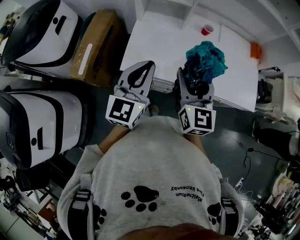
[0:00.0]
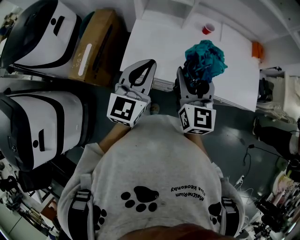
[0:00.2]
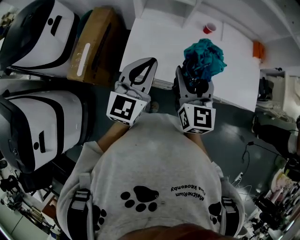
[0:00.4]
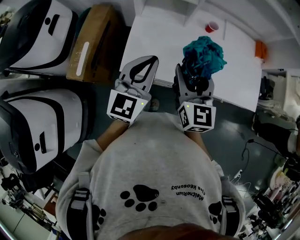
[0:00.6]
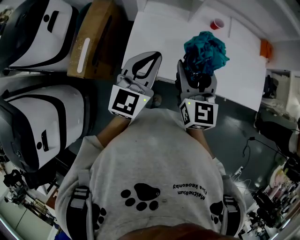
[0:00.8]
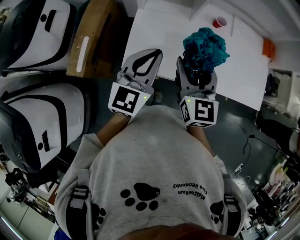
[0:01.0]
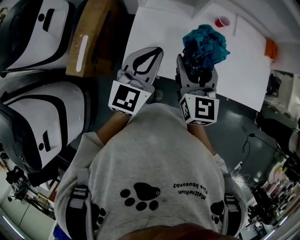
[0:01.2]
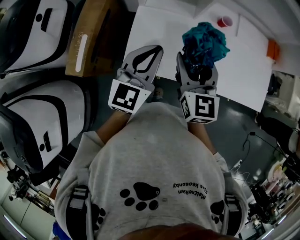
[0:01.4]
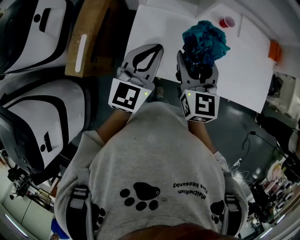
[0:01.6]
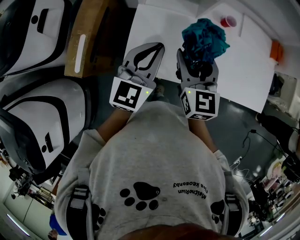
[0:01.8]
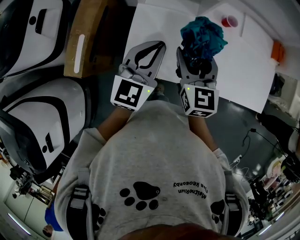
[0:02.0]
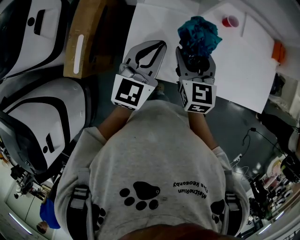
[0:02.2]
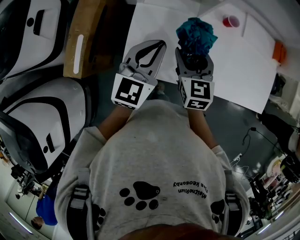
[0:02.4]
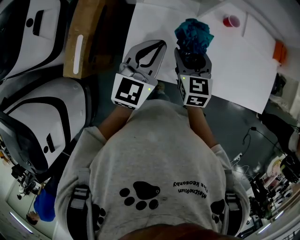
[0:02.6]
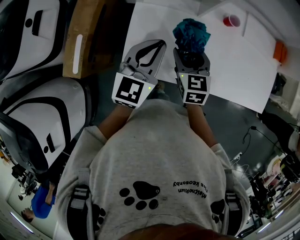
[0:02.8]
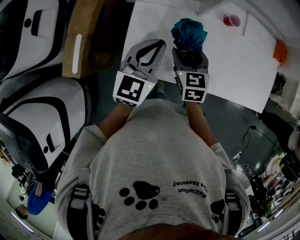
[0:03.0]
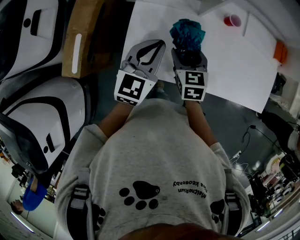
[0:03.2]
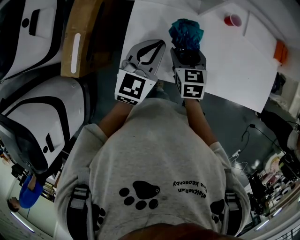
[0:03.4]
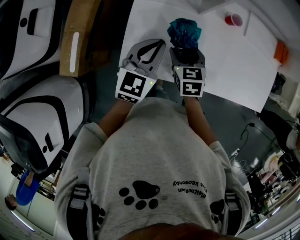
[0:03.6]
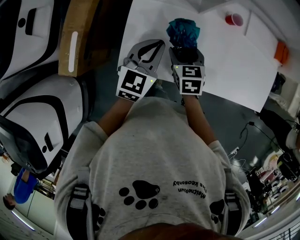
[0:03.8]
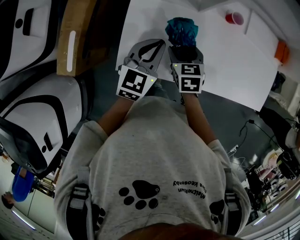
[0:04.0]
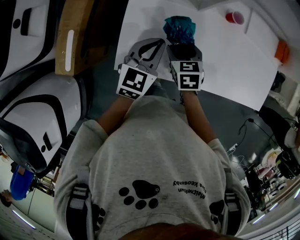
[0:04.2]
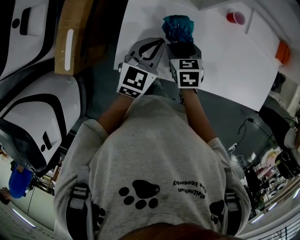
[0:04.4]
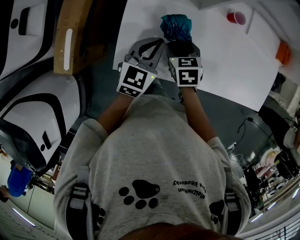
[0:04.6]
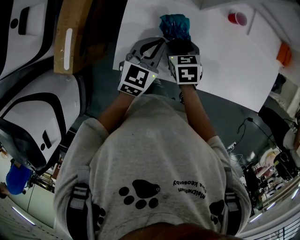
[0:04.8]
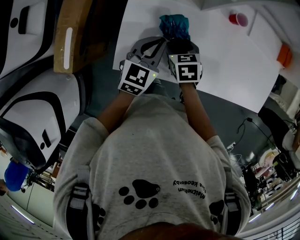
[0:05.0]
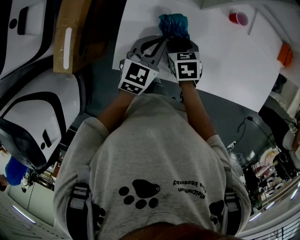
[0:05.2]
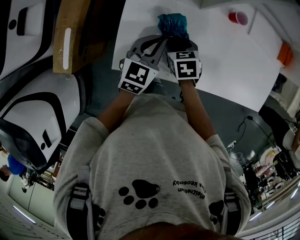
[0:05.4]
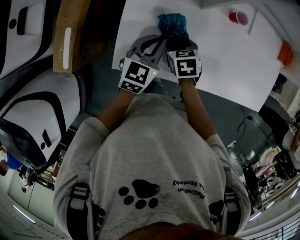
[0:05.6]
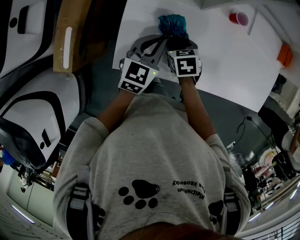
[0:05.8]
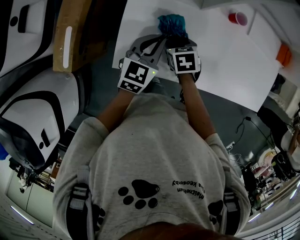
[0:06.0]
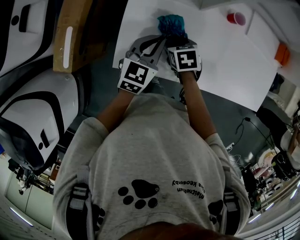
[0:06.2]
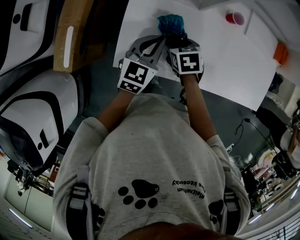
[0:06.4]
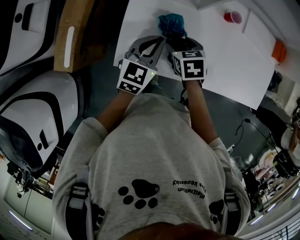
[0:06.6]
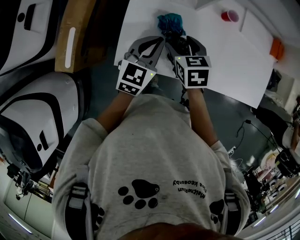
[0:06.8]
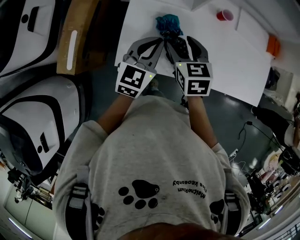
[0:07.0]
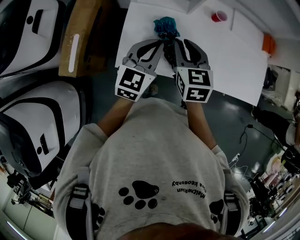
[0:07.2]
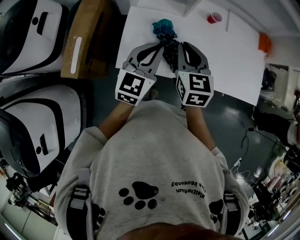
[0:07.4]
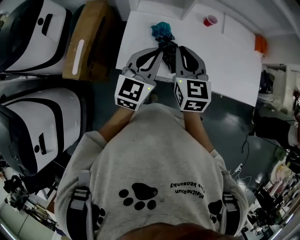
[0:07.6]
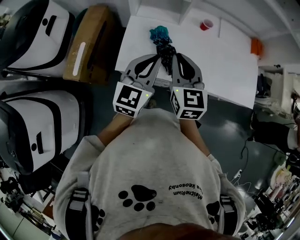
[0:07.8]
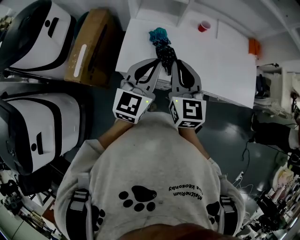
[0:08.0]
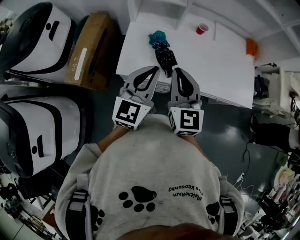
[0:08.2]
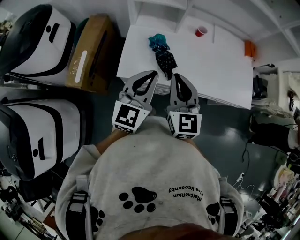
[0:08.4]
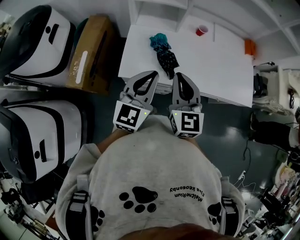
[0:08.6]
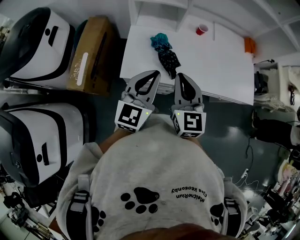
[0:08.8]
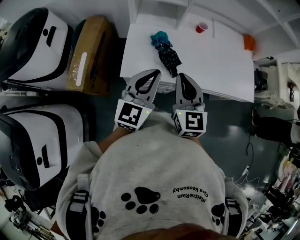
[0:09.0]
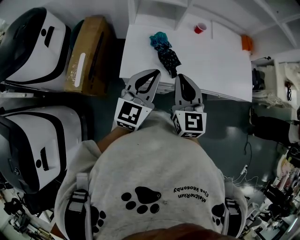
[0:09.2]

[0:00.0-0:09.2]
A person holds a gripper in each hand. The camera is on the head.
0.0 to 1.6 s: The right gripper goes roughly 15 cm forward, to the left and downward; the left gripper goes approximately 15 cm forward.
1.6 to 3.0 s: The left gripper moves downward and forward, roughly 10 cm. The right gripper moves downward and forward, about 15 cm, and turns by some 20 degrees.
3.0 to 4.6 s: The grippers both shift downward by about 10 cm.
4.6 to 6.2 s: The grippers move only a little.
6.2 to 7.6 s: The two grippers go about 25 cm upward and backward. The right gripper tips its fingers upward by about 50 degrees, and closes its fingers.
7.6 to 9.2 s: The two grippers go roughly 10 cm backward.

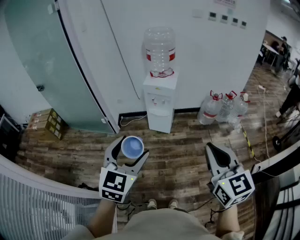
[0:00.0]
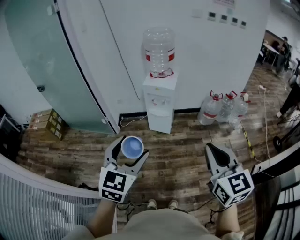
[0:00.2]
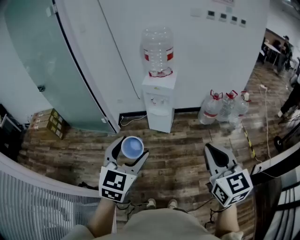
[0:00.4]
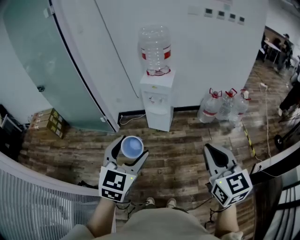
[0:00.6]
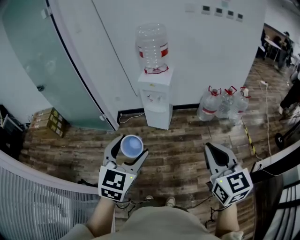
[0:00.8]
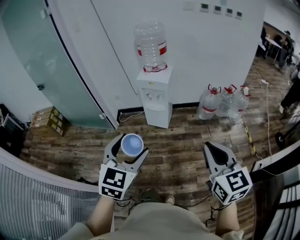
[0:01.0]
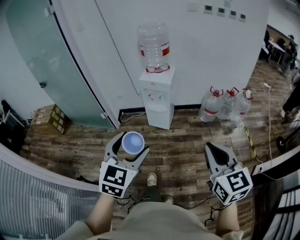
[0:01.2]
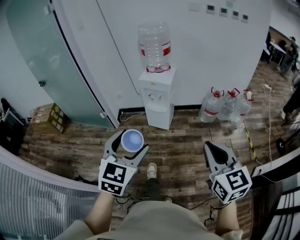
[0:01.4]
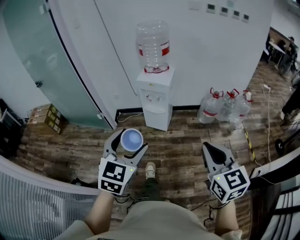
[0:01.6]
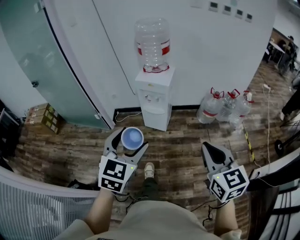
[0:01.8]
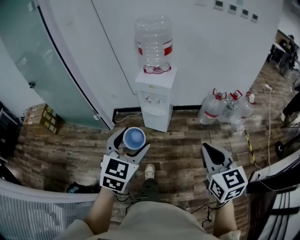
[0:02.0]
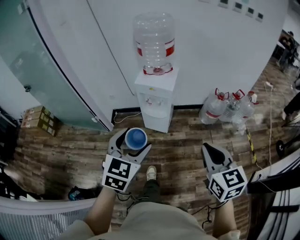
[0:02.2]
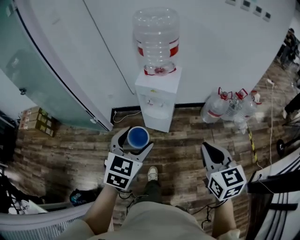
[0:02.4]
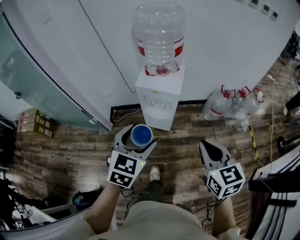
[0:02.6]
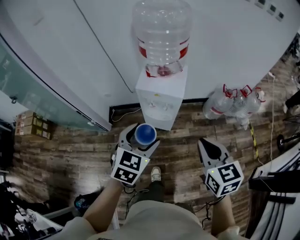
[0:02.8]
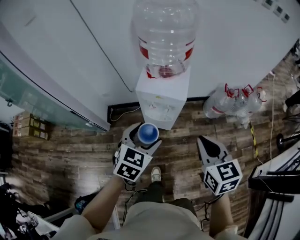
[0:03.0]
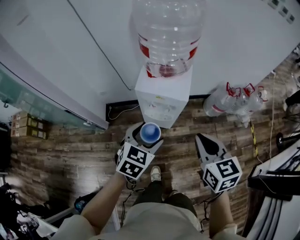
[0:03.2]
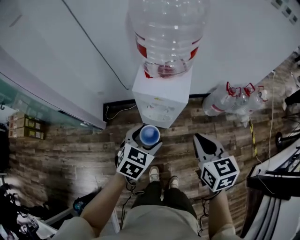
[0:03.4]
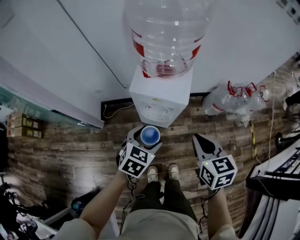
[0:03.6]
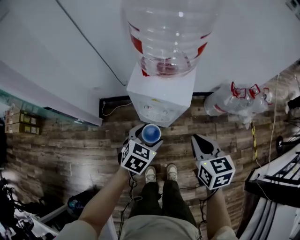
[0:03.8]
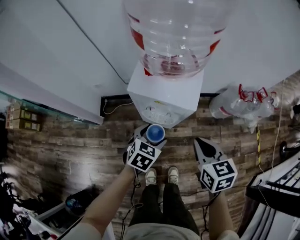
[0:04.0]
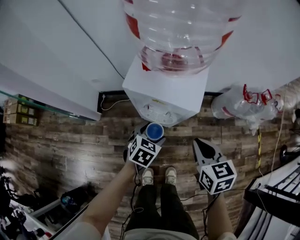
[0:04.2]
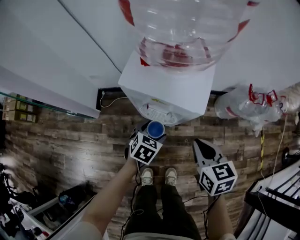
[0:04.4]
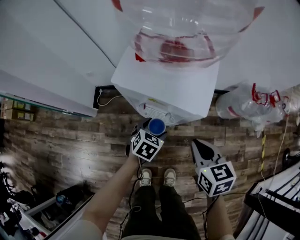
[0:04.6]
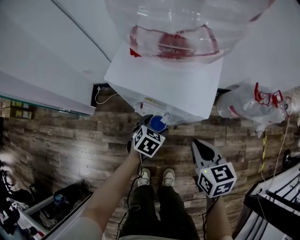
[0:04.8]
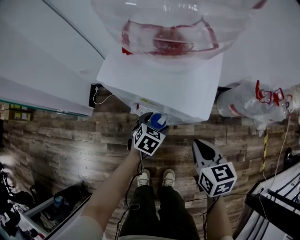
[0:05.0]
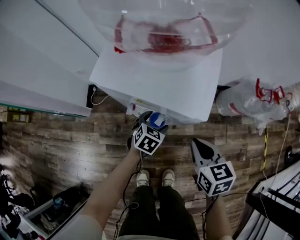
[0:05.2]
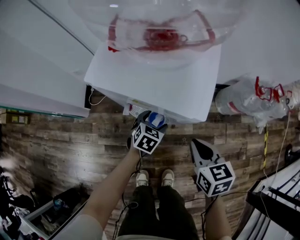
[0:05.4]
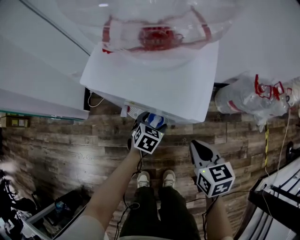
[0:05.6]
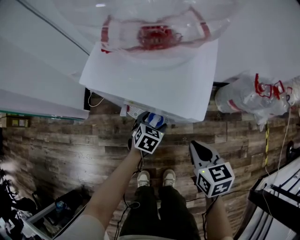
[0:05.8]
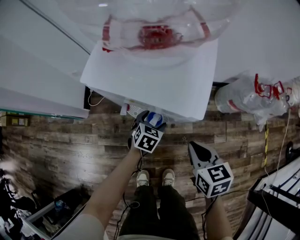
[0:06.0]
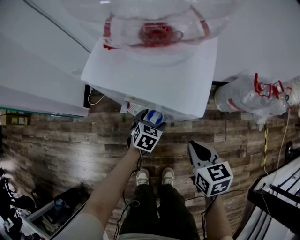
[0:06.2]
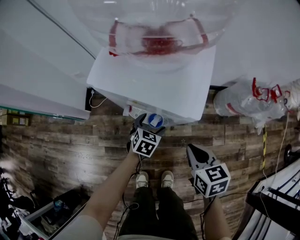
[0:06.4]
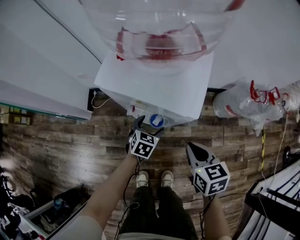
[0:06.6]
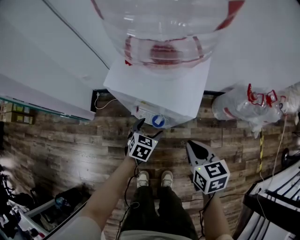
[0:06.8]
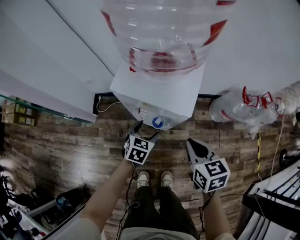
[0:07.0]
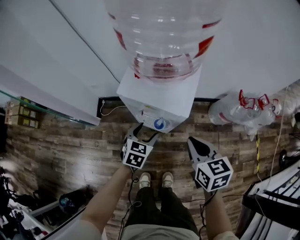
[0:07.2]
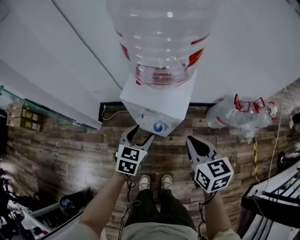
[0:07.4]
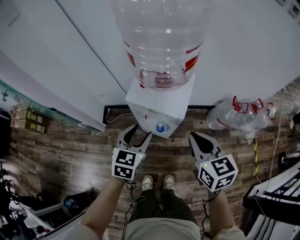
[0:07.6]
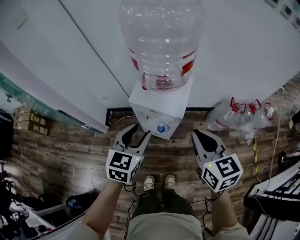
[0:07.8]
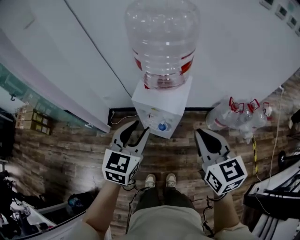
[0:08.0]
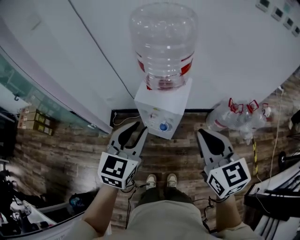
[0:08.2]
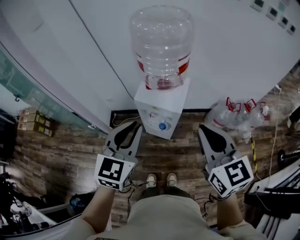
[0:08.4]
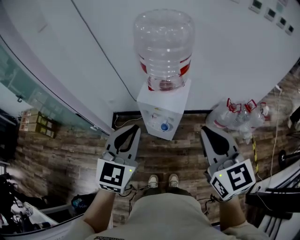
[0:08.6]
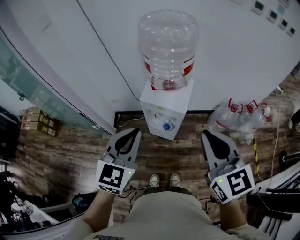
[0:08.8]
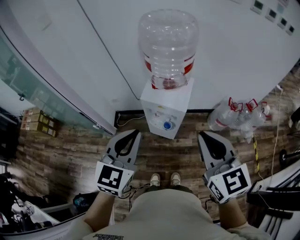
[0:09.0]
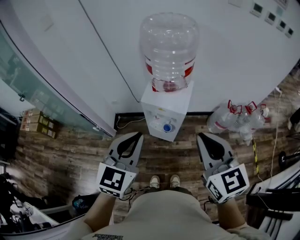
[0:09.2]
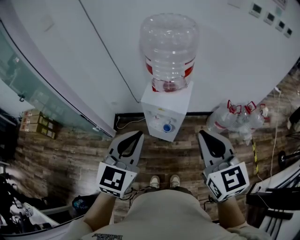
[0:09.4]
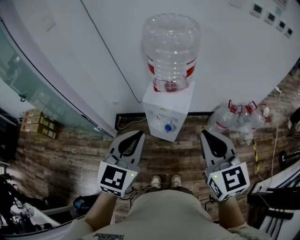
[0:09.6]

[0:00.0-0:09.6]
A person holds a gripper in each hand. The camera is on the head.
0.0 to 1.6 s: The left gripper moves to the right and forward, some 10 cm. Meanwhile the right gripper travels to the right, downward and forward by approximately 15 cm.
1.6 to 3.2 s: Both grippers are carried forward, some 40 cm. The left gripper heads downward, covering about 20 cm, and changes its angle by about 30 degrees.
3.2 to 4.8 s: The grippers both shift downward and forward by approximately 40 cm.
4.8 to 6.4 s: Both grippers travel together downward, about 5 cm.
6.4 to 8.0 s: The grippers both shift upward by about 50 cm. The left gripper changes its angle by approximately 30 degrees, and closes its fingers, while the right gripper swivels roughly 30 degrees.
8.0 to 9.6 s: The grippers both shift upward and backward by about 15 cm. The left gripper closes.

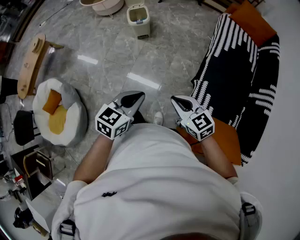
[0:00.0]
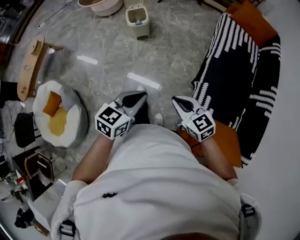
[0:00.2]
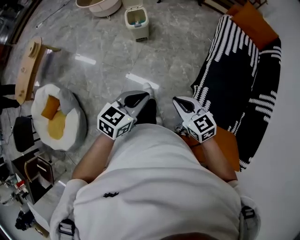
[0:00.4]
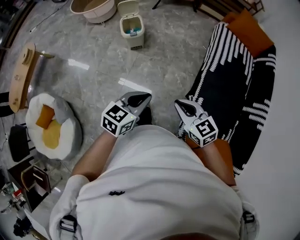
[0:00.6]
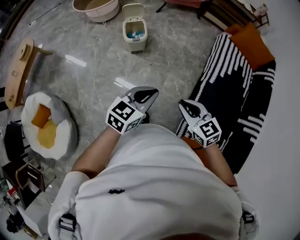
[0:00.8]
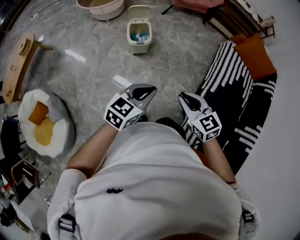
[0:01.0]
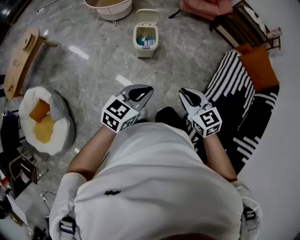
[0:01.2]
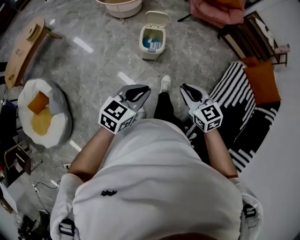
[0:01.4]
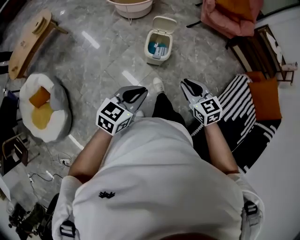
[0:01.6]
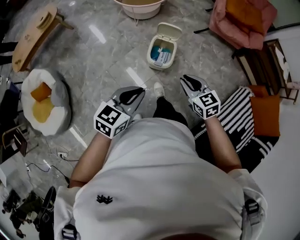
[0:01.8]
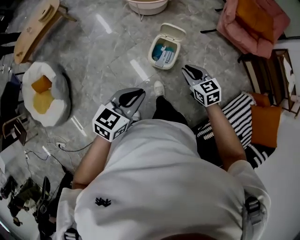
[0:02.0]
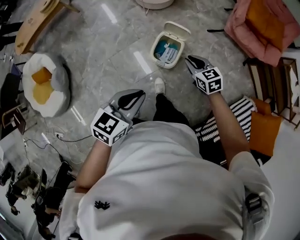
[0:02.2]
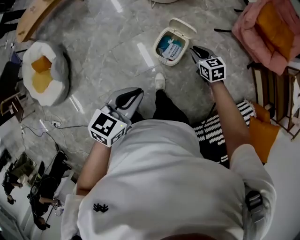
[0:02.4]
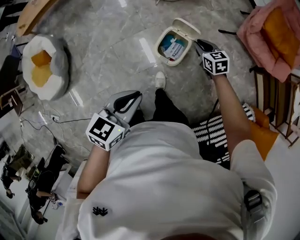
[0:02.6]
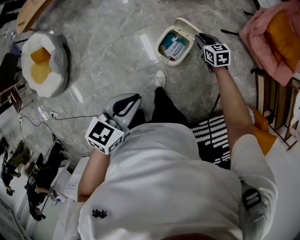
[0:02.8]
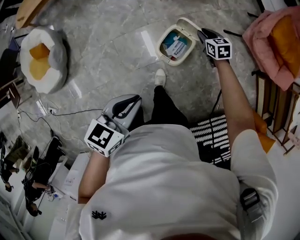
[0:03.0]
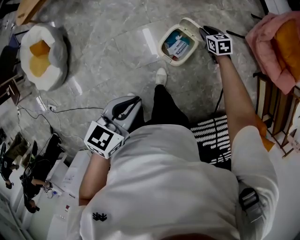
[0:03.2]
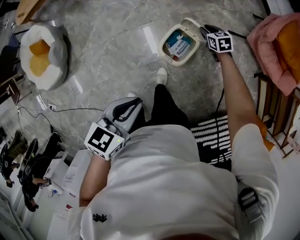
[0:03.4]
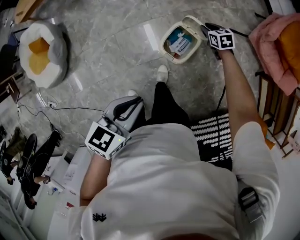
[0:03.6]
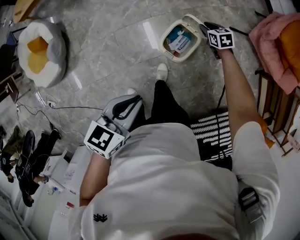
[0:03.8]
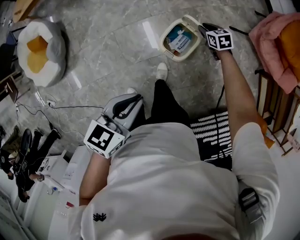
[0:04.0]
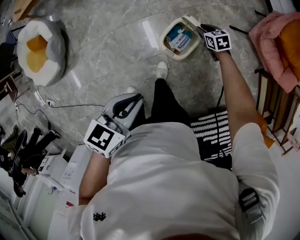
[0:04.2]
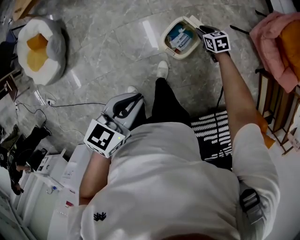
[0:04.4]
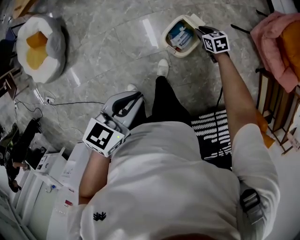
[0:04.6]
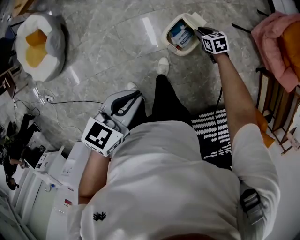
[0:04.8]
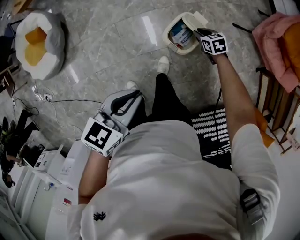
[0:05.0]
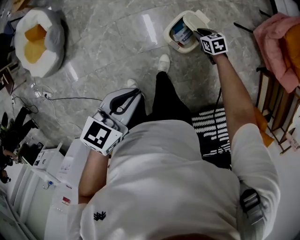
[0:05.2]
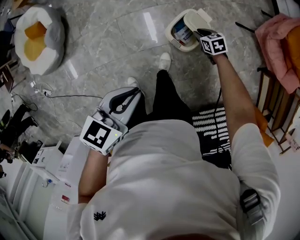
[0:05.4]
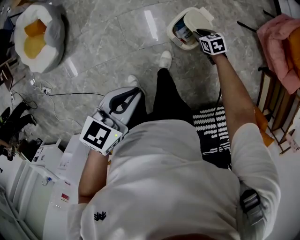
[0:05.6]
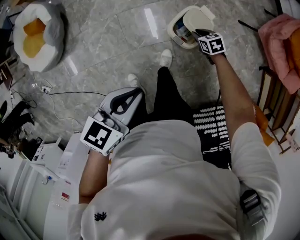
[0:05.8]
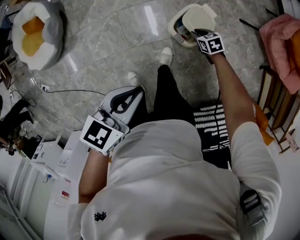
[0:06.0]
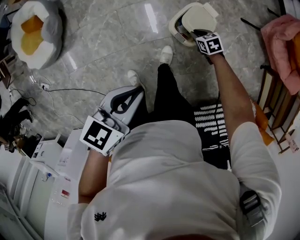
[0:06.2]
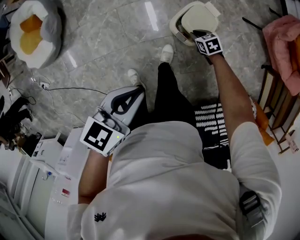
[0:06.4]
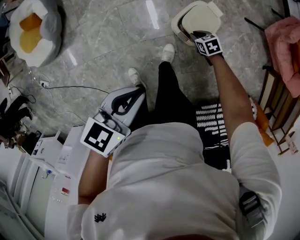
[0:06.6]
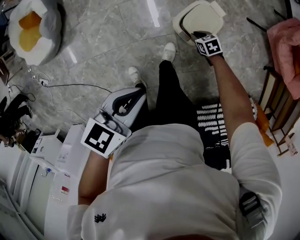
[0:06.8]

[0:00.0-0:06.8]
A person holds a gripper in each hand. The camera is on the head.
0.0 to 1.4 s: Both grippers are carried forward, roughly 40 cm.
1.4 to 2.8 s: The right gripper moves approximately 60 cm, and rotates about 30 degrees. Meanwhile the left gripper shifts by some 25 cm, and changes its angle by roughly 40 degrees.
2.8 to 4.0 s: The right gripper shifts about 10 cm downward.
4.0 to 5.4 s: The left gripper shifts by some 5 cm. The right gripper heads backward and to the left, covering roughly 10 cm.
5.4 to 6.8 s: The right gripper heads downward, covering about 10 cm.
